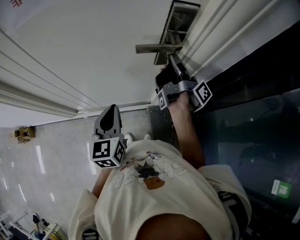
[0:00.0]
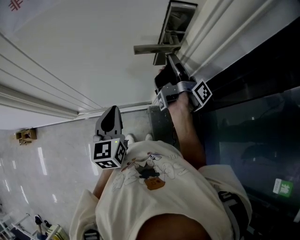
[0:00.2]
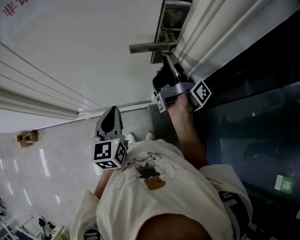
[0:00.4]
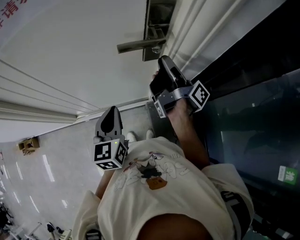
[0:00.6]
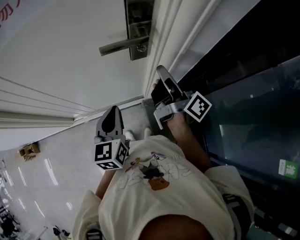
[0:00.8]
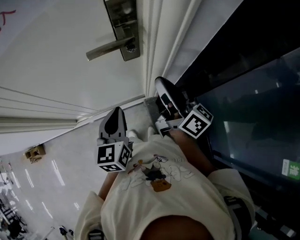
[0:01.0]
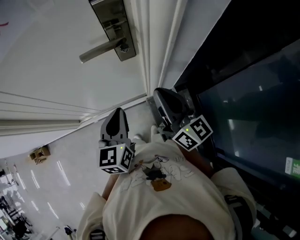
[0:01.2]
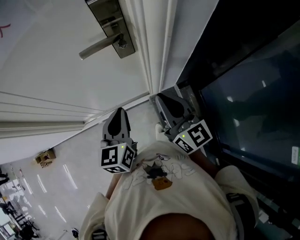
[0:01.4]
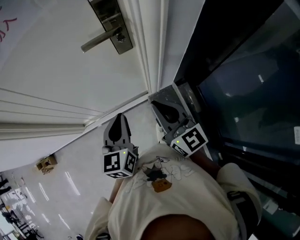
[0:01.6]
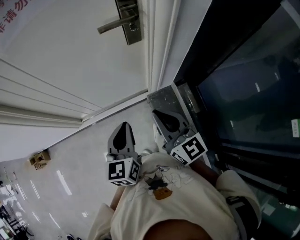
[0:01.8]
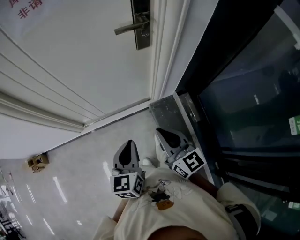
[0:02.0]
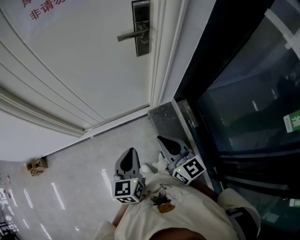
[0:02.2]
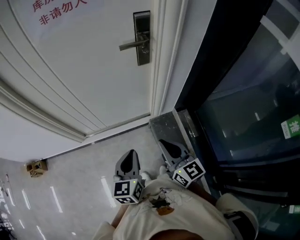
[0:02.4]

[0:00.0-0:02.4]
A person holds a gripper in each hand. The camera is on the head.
0:00.0 to 0:01.2: The left gripper is displaced to the right by about 10 cm. The right gripper is displaced backward by approximately 15 cm, and twists about 60 degrees counterclockwise, seen from behind.
0:01.2 to 0:02.4: The right gripper moves backward and to the left, roughly 30 cm, while the left gripper goes approximately 25 cm backward.

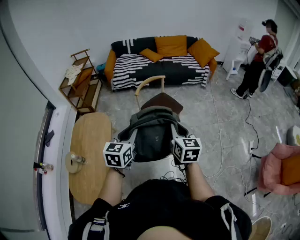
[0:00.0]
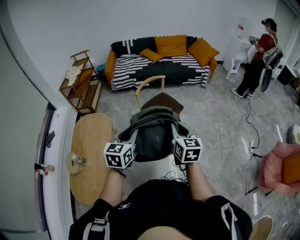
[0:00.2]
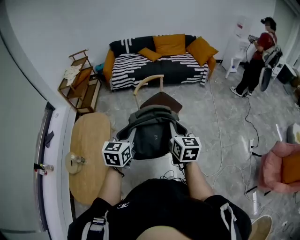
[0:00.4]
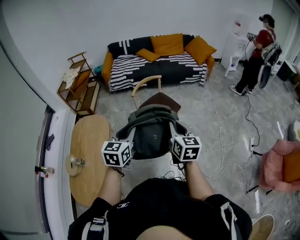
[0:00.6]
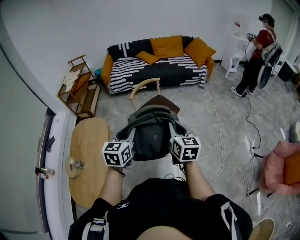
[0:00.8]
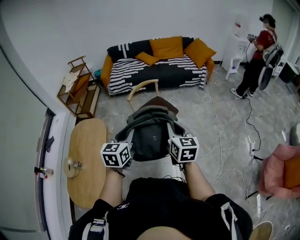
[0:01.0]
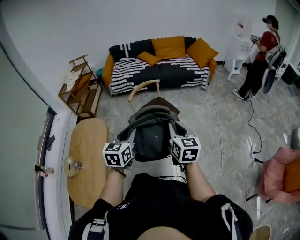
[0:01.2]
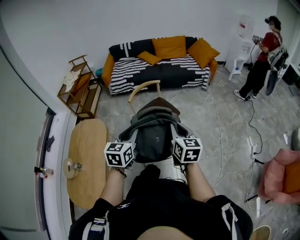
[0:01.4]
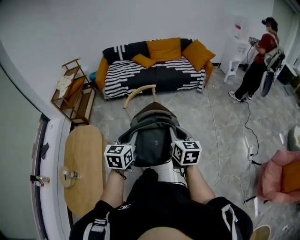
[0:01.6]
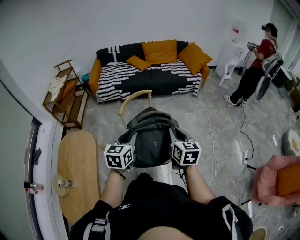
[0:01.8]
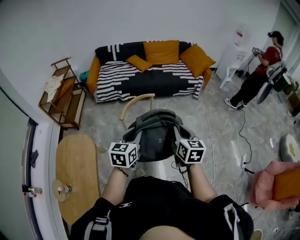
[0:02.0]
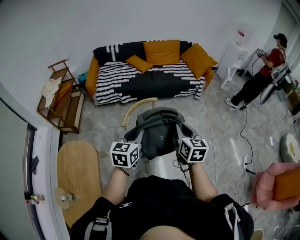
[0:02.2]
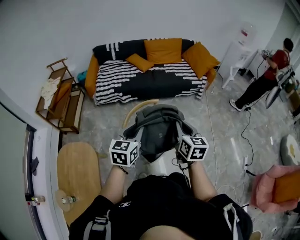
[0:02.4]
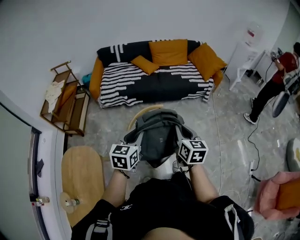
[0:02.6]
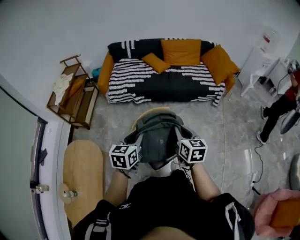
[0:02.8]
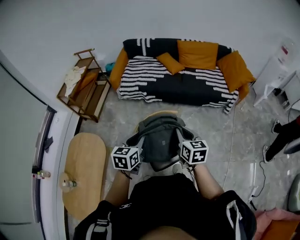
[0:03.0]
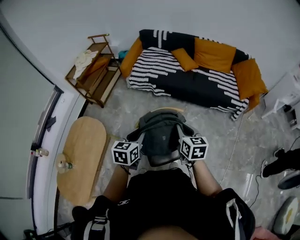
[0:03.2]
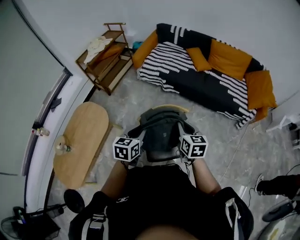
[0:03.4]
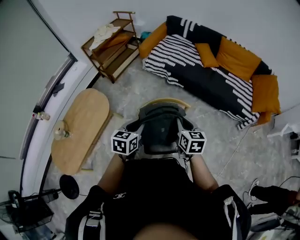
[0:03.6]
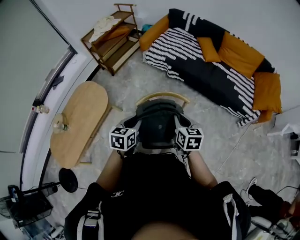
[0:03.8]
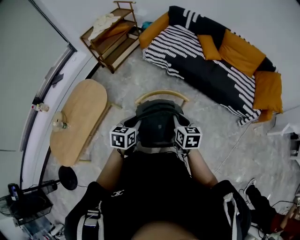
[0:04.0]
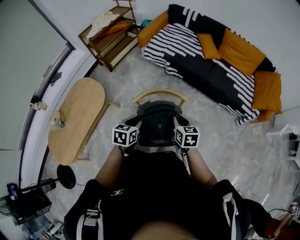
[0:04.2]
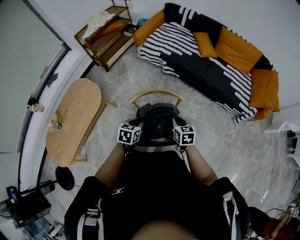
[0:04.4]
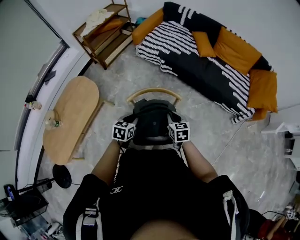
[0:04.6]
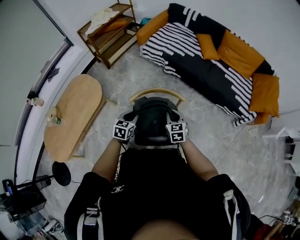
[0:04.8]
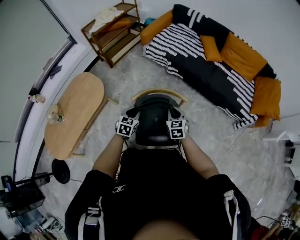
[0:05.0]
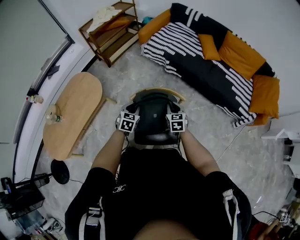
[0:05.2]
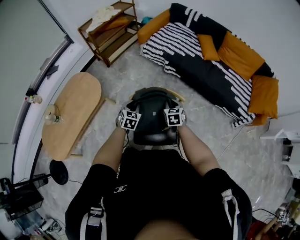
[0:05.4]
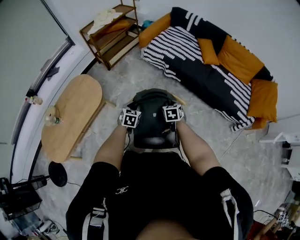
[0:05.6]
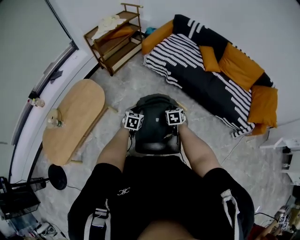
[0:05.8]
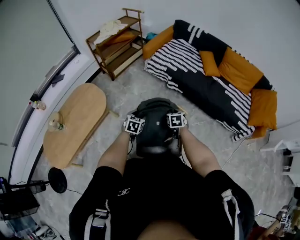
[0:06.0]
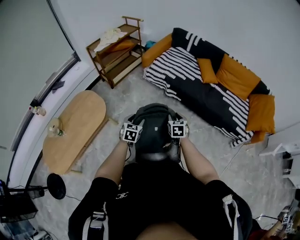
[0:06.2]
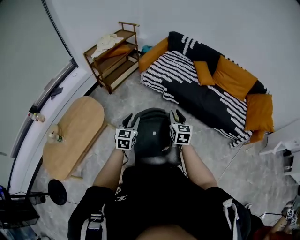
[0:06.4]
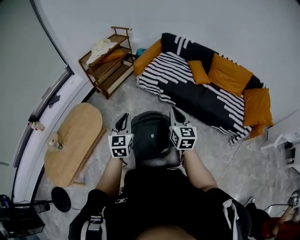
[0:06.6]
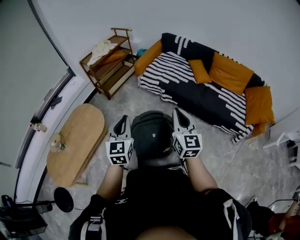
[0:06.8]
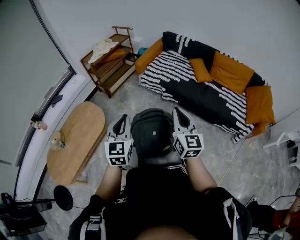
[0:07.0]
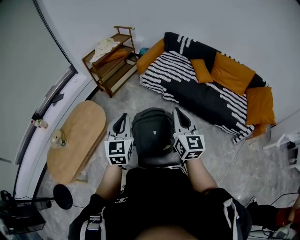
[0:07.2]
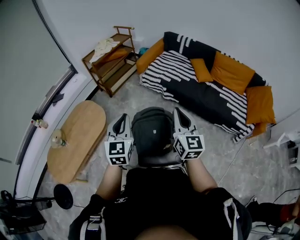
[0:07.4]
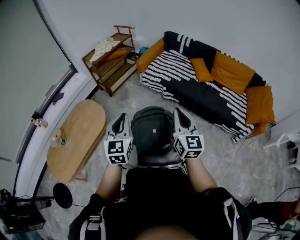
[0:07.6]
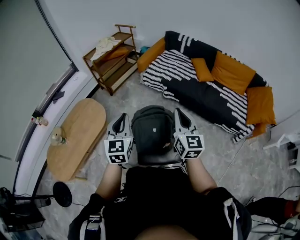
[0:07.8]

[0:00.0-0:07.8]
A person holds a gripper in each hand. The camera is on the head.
0:00.0 to 0:01.6: The two grippers go about 20 cm forward and to the right.
0:01.6 to 0:03.2: The pair of grippers is taken about 50 cm. The right gripper rotates about 30 degrees. The left gripper rotates some 20 degrees.
0:03.2 to 0:04.6: The right gripper travels downward and forward by some 20 cm, and changes its angle by roughly 20 degrees. The left gripper shifts roughly 15 cm downward.
0:04.6 to 0:06.2: Both grippers travel together forward, some 10 cm. The left gripper opens, while the right gripper opens its fingers.
0:06.2 to 0:07.8: The left gripper is displaced upward by some 25 cm, changes its angle by about 30 degrees, and closes up, while the right gripper moves upward and backward, roughly 30 cm, tilts its fingers about 40 degrees upward, and closes its fingers.

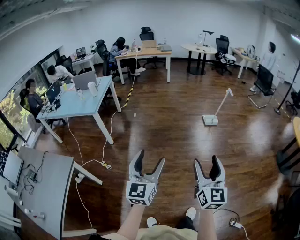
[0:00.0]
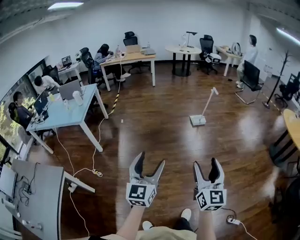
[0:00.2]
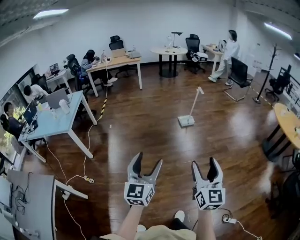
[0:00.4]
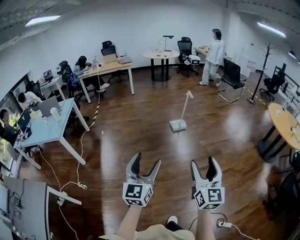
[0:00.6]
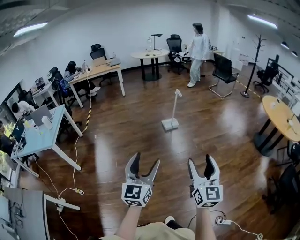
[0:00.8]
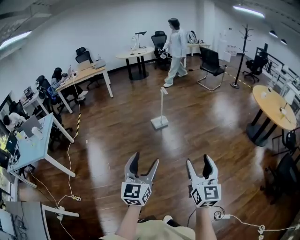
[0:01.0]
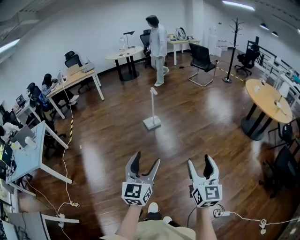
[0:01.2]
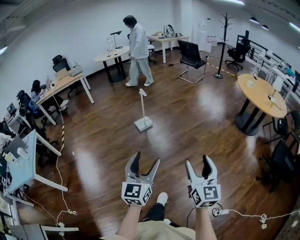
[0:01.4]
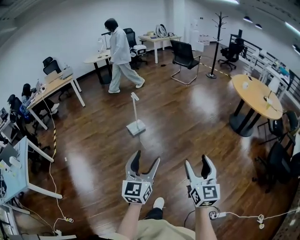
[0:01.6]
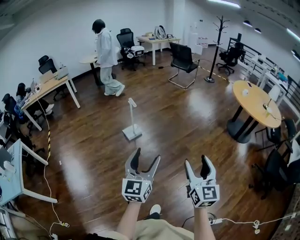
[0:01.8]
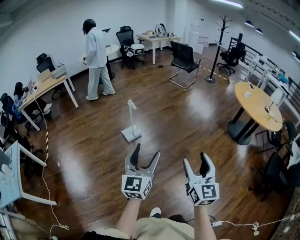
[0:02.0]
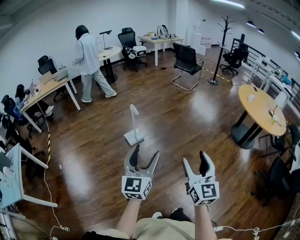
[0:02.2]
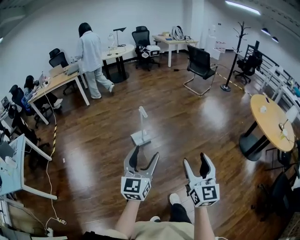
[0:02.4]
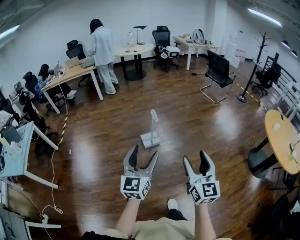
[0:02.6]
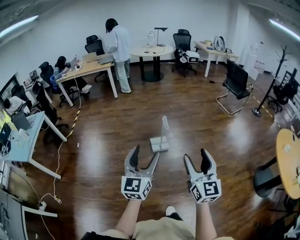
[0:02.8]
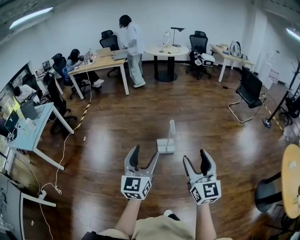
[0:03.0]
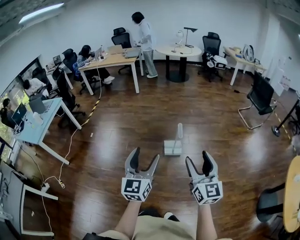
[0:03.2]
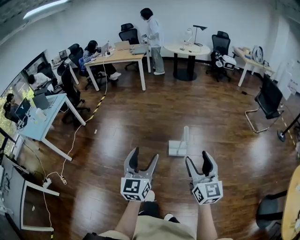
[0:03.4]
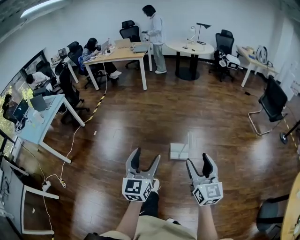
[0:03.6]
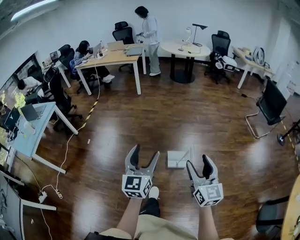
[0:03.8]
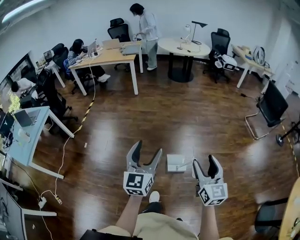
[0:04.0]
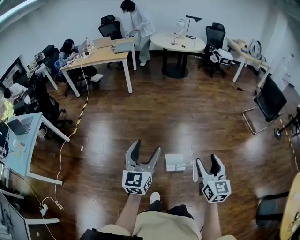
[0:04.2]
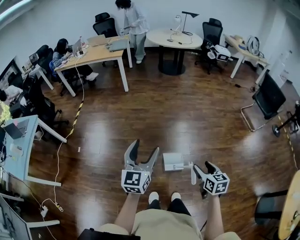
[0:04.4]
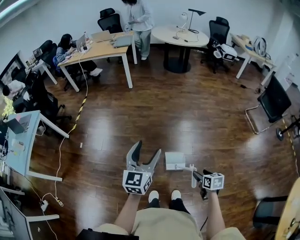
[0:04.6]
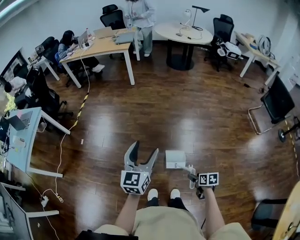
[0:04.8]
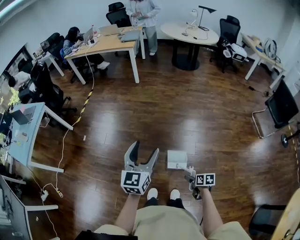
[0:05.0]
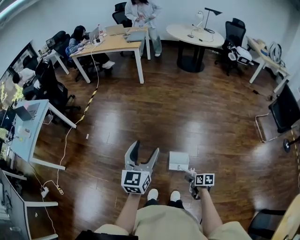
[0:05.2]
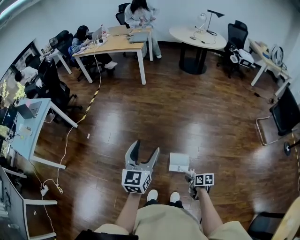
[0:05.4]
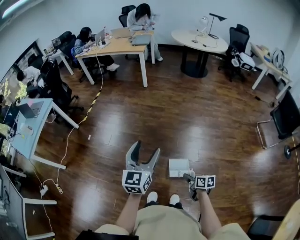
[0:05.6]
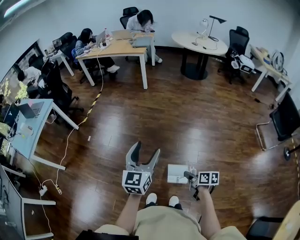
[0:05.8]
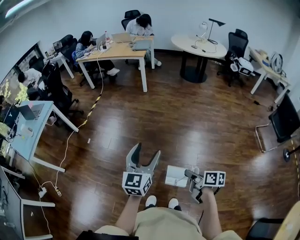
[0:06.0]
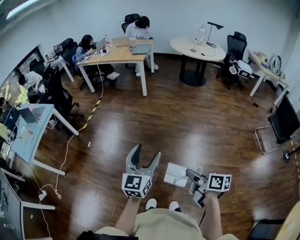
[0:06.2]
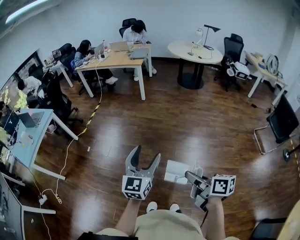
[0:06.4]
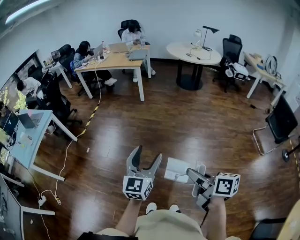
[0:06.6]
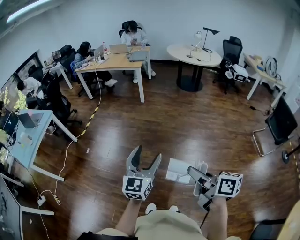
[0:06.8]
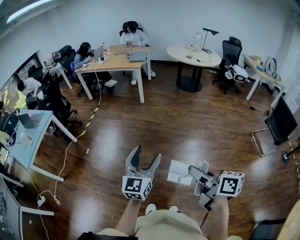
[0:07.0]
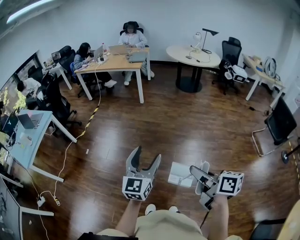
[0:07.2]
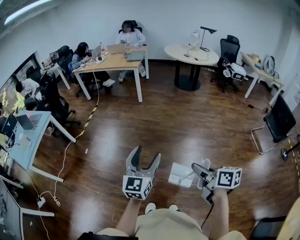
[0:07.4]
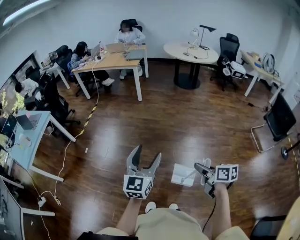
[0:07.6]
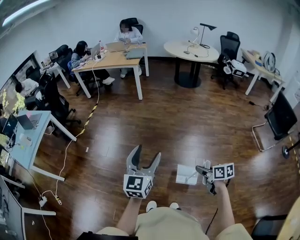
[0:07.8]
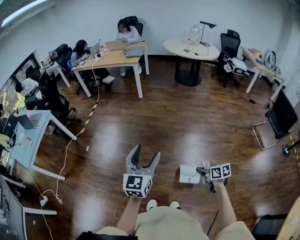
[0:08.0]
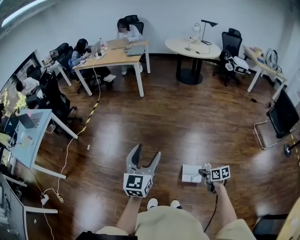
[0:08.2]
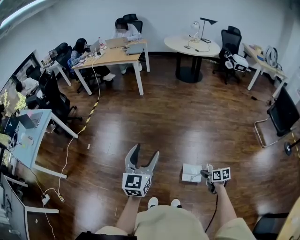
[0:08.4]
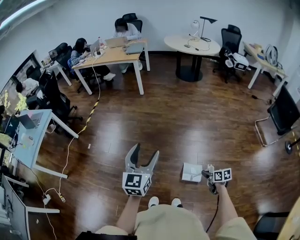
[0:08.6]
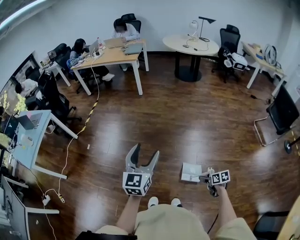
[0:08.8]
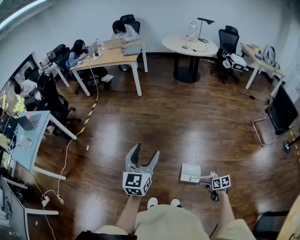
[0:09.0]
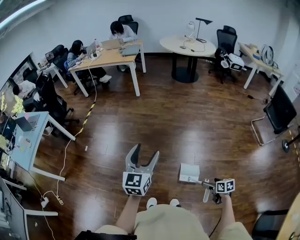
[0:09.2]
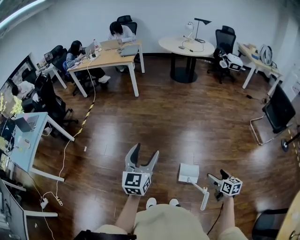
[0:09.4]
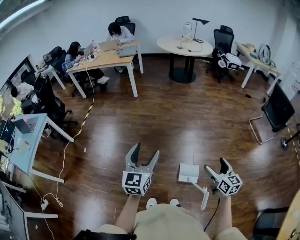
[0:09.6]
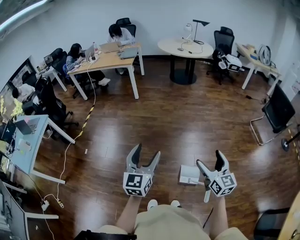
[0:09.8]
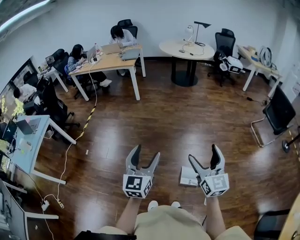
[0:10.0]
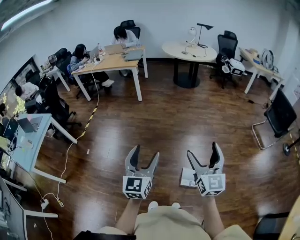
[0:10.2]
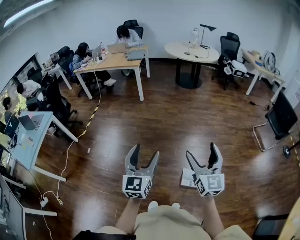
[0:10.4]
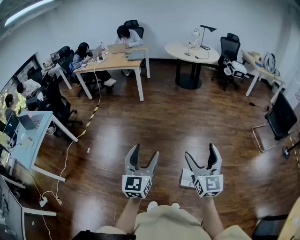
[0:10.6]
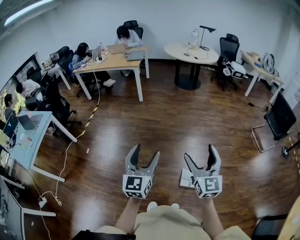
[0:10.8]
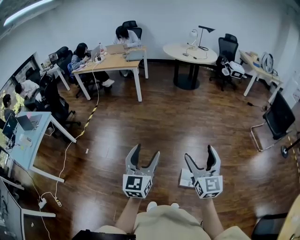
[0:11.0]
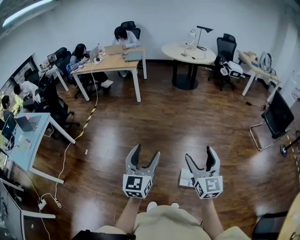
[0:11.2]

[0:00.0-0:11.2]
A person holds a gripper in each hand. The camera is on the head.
0:00.0 to 0:01.6: Both grippers are carried roughly 50 cm. The right gripper changes its angle by approximately 30 degrees, while the left gripper swivels roughly 30 degrees.
0:01.6 to 0:03.2: The right gripper moves approximately 50 cm, and rotates approximately 40 degrees, while the left gripper changes place by about 35 cm, and rotates approximately 40 degrees.
0:03.2 to 0:04.8: The right gripper moves downward and forward, some 50 cm, and tips its fingers downward by some 60 degrees. The left gripper goes about 40 cm forward.
0:04.8 to 0:06.4: The right gripper heads upward, covering some 30 cm, points its fingers about 40 degrees further upward, and closes. Meanwhile the left gripper heads upward, covering some 5 cm.
0:06.4 to 0:08.0: The right gripper is displaced downward and to the right by roughly 25 cm, and changes its angle by about 20 degrees.
0:08.0 to 0:09.6: The right gripper moves upward and to the right, some 15 cm, swivels some 40 degrees, and opens up.
0:09.6 to 0:11.2: The right gripper moves to the left and upward, approximately 20 cm, and turns by roughly 30 degrees.

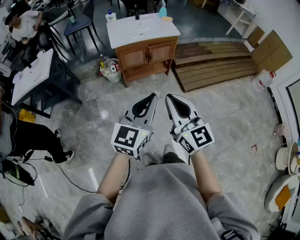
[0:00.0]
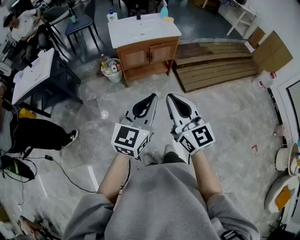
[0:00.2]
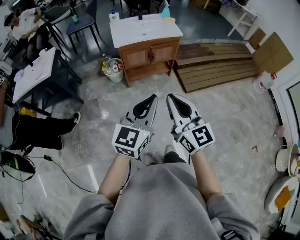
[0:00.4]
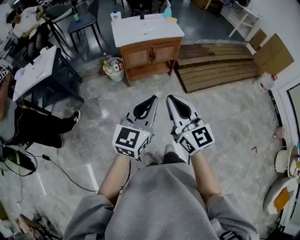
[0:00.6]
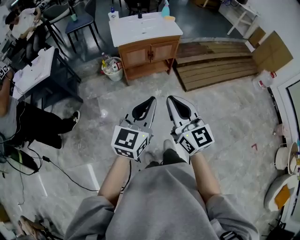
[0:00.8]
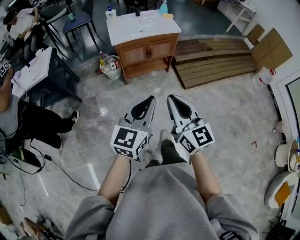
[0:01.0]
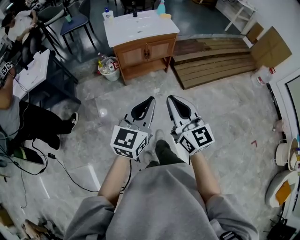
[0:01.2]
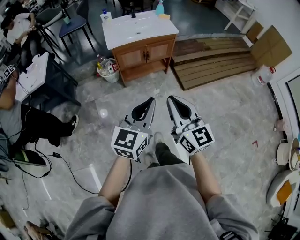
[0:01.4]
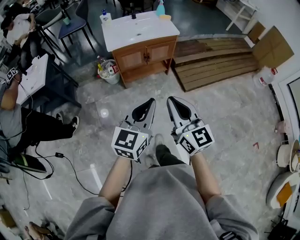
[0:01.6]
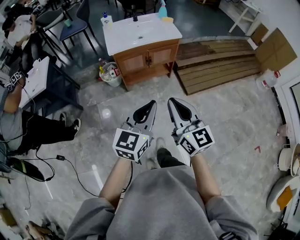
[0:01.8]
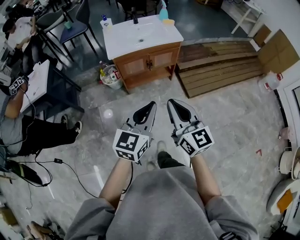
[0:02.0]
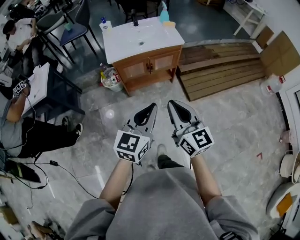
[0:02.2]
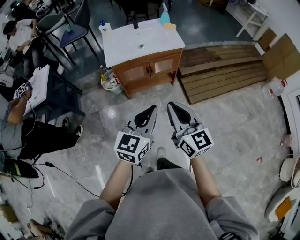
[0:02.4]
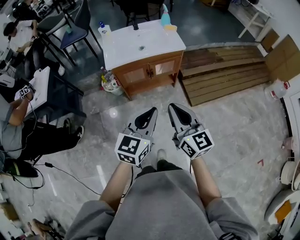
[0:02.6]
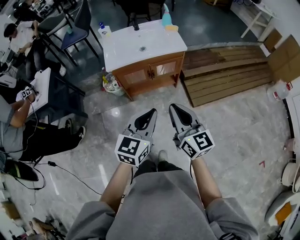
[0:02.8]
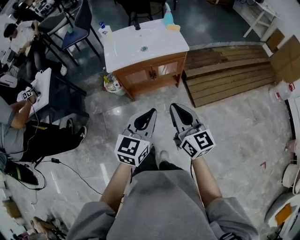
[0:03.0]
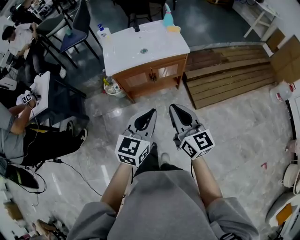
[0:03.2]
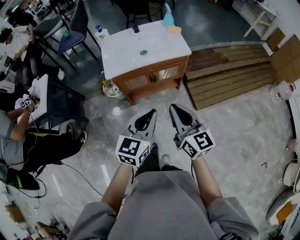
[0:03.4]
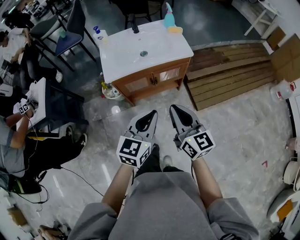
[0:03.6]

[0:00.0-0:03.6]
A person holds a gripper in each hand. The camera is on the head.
0:00.0 to 0:01.8: Both grippers move forward, about 10 cm.
0:01.8 to 0:03.6: The grippers both shift forward by roughly 25 cm.
